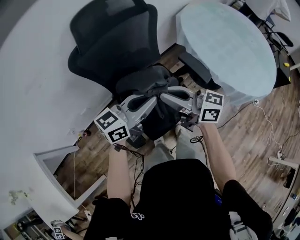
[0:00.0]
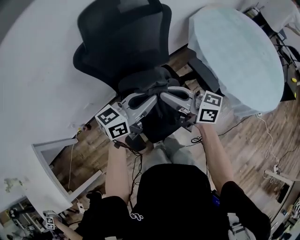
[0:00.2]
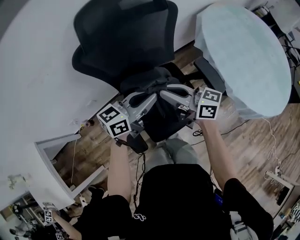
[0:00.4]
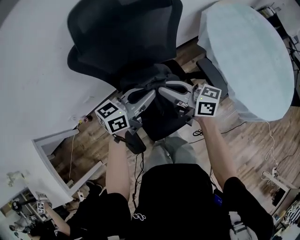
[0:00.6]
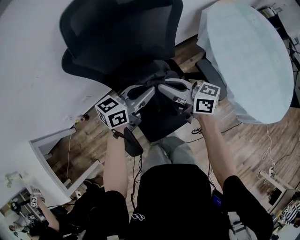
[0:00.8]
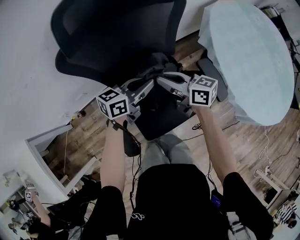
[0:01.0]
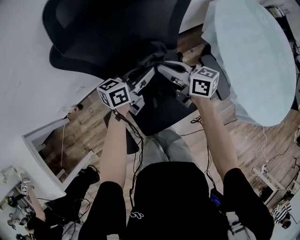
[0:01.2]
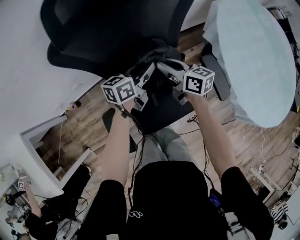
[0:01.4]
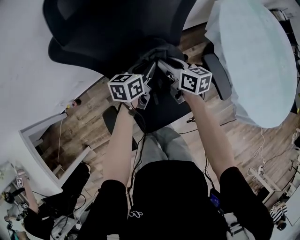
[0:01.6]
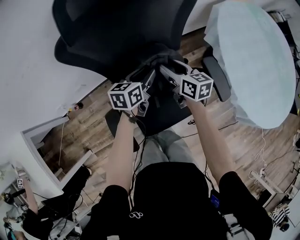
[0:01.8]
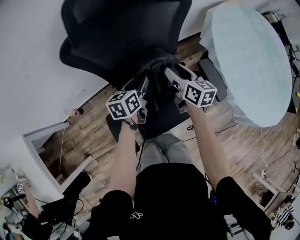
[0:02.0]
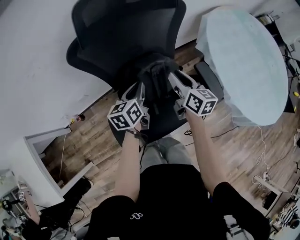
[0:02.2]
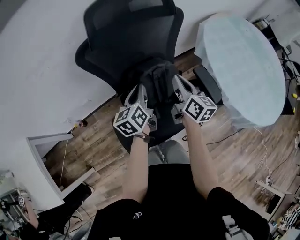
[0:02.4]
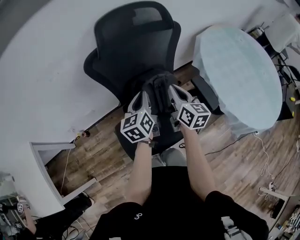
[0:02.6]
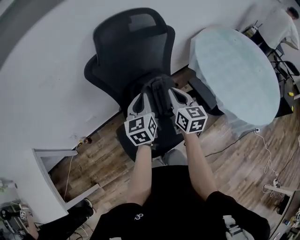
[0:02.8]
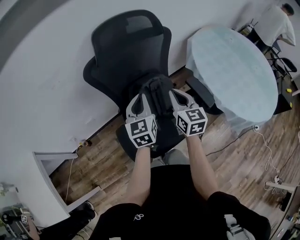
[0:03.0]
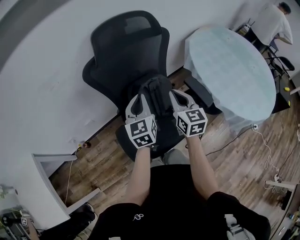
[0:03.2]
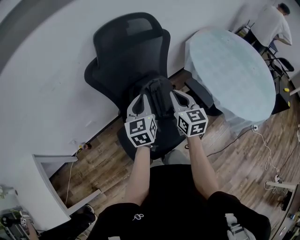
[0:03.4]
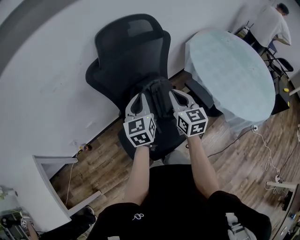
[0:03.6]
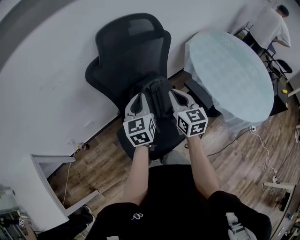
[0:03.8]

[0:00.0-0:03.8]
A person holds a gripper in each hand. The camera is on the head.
0:00.0 to 0:01.2: The grippers both shift forward and downward by about 30 cm. The left gripper changes its angle by approximately 30 degrees.
0:01.2 to 0:02.6: The right gripper shifts approximately 10 cm upward and backward, changes its angle by roughly 40 degrees, and opens, then closes again, while the left gripper goes roughly 15 cm upward, backward and to the left, swivels about 40 degrees, and opens, then closes once more.
0:02.6 to 0:03.8: The grippers both shift upward by roughly 5 cm. The right gripper rotates about 20 degrees.

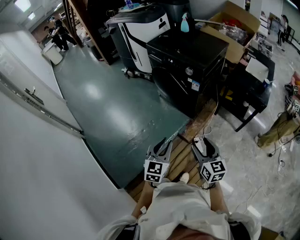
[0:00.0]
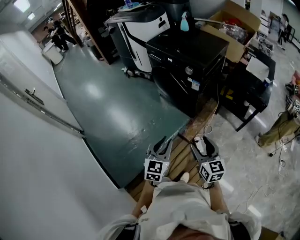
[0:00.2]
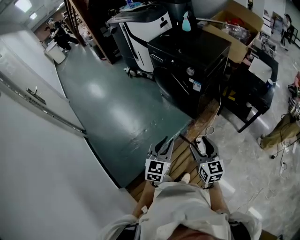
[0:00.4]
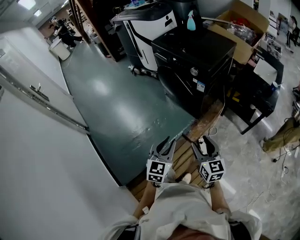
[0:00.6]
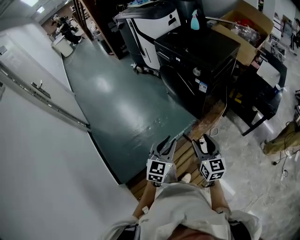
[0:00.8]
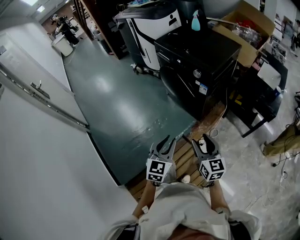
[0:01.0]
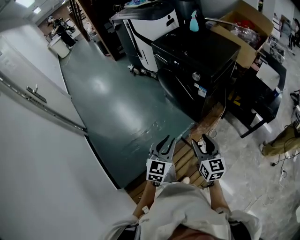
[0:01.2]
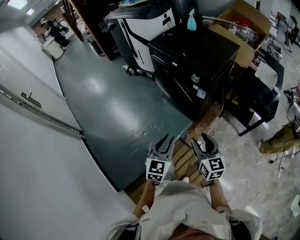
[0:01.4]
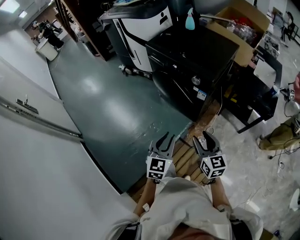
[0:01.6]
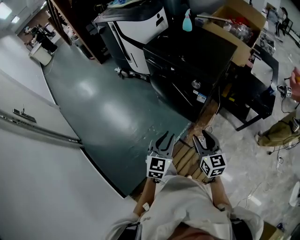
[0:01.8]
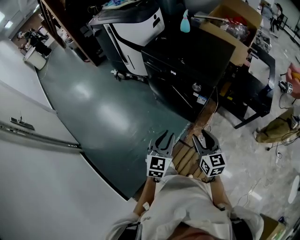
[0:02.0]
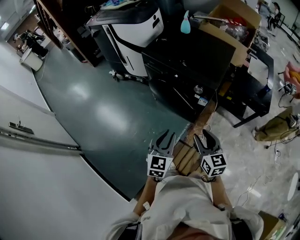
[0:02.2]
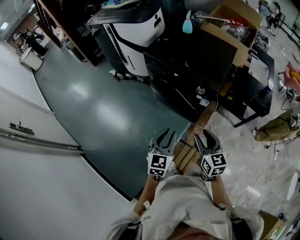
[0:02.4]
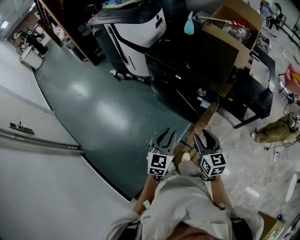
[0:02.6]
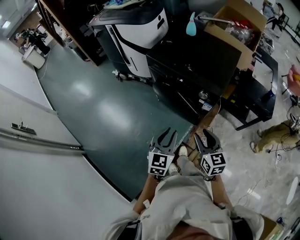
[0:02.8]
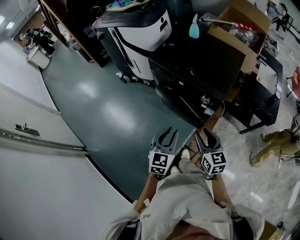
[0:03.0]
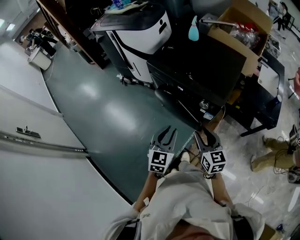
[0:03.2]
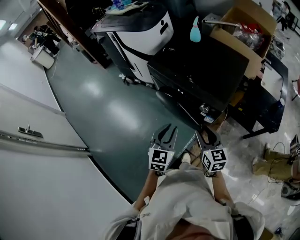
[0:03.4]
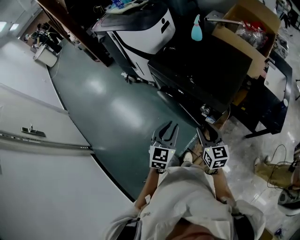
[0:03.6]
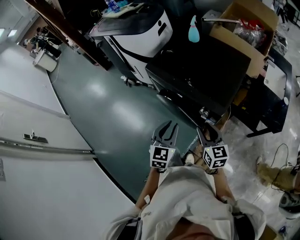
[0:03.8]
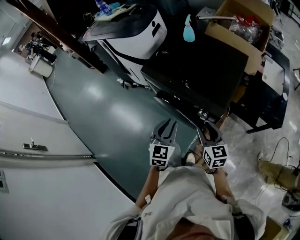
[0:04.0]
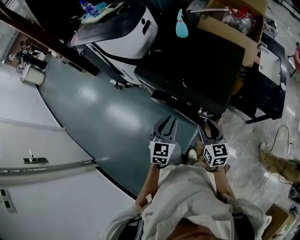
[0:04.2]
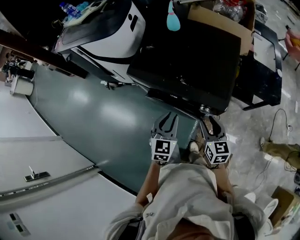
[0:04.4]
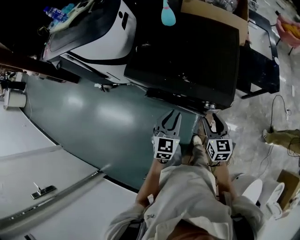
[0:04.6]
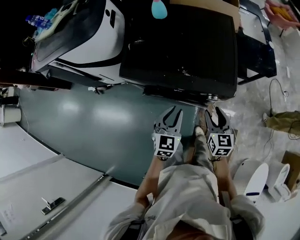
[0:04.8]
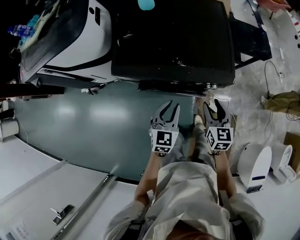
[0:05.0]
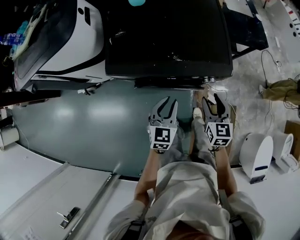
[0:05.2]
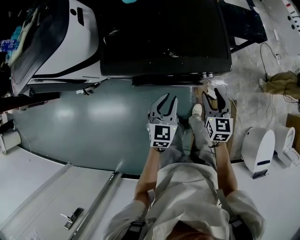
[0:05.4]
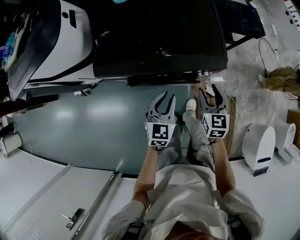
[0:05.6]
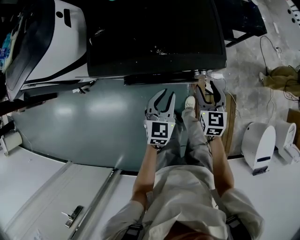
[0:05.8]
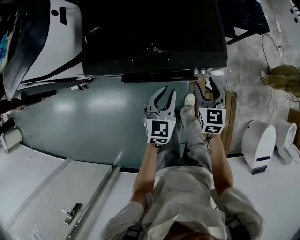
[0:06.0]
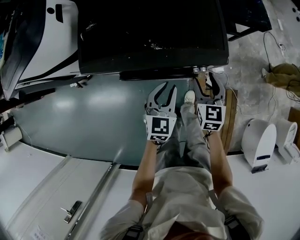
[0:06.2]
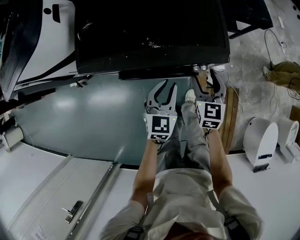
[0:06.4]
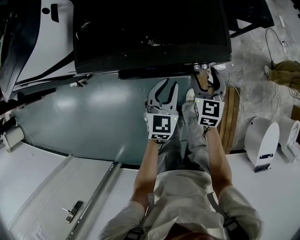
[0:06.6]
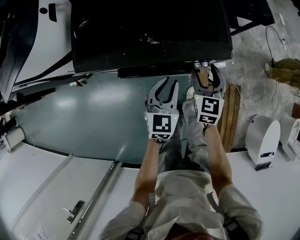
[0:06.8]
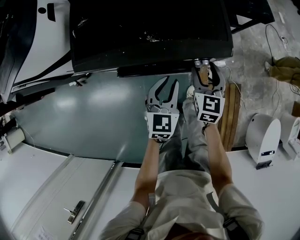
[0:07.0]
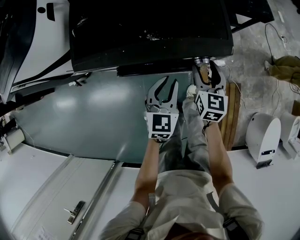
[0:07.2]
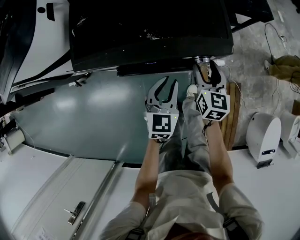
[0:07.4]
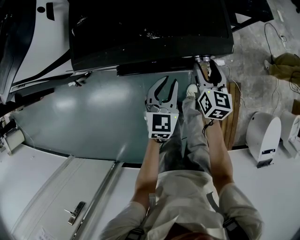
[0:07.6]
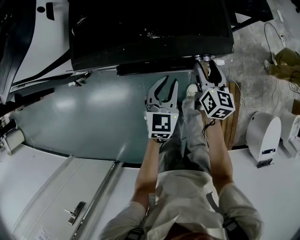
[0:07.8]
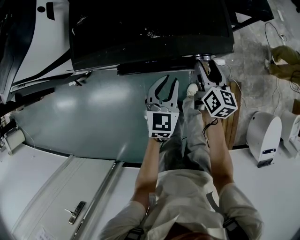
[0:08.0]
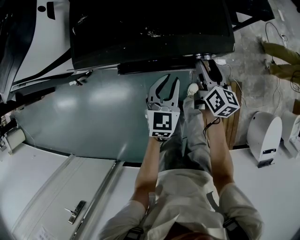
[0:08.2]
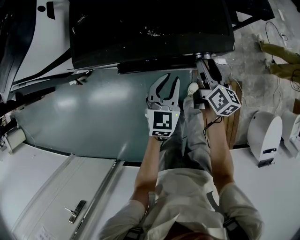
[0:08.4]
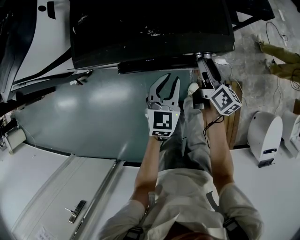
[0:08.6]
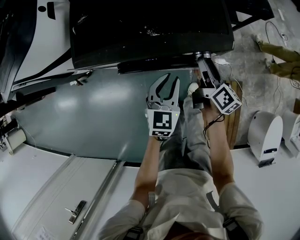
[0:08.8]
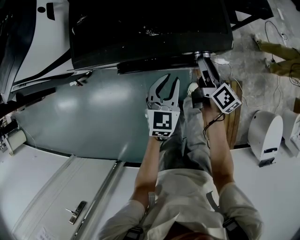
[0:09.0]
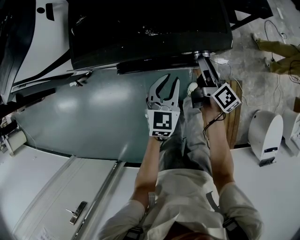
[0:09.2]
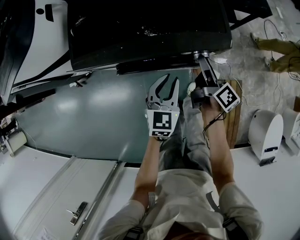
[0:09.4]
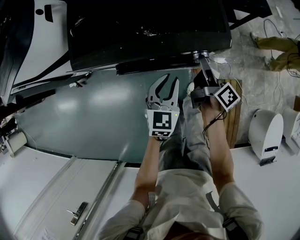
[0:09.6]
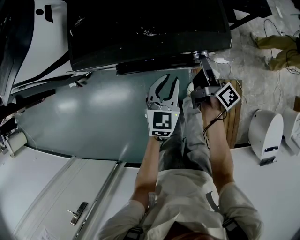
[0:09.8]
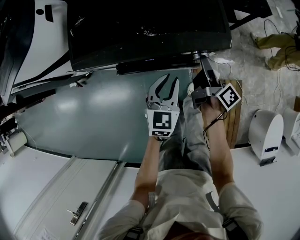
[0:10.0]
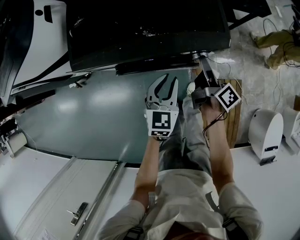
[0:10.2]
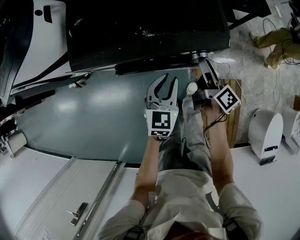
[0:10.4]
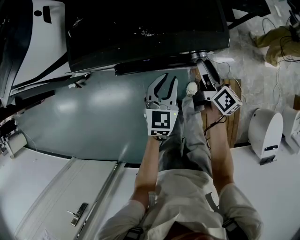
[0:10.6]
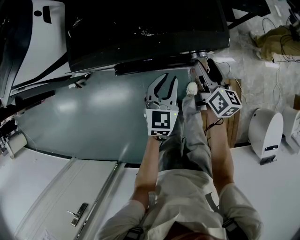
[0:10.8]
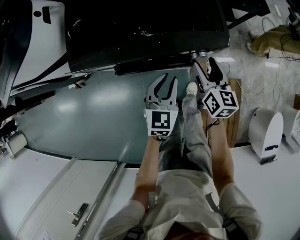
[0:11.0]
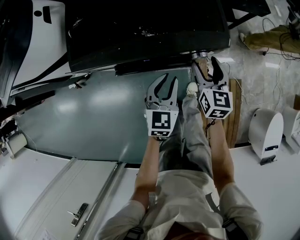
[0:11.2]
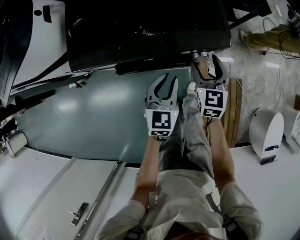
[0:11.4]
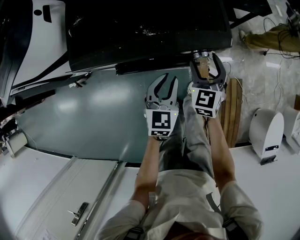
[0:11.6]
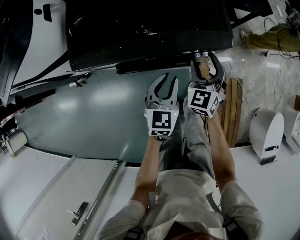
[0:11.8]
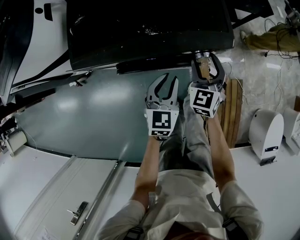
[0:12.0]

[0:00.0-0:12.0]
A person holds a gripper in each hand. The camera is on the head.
0:00.0 to 0:01.6: The grippers both shift forward by approximately 15 cm.
0:01.6 to 0:03.0: The right gripper heads forward and to the left, covering some 15 cm. The left gripper moves forward, about 15 cm.
0:03.0 to 0:04.4: The two grippers go some 20 cm forward.
0:04.4 to 0:06.0: The grippers both shift downward by roughly 10 cm. The right gripper changes its angle by roughly 30 degrees. The left gripper swivels some 30 degrees.
0:06.0 to 0:07.6: The right gripper swivels roughly 20 degrees.
0:07.6 to 0:09.0: The right gripper rolls clockwise, seen from behind, by some 40 degrees.
0:10.4 to 0:12.0: The right gripper twists about 80 degrees counterclockwise, seen from behind.

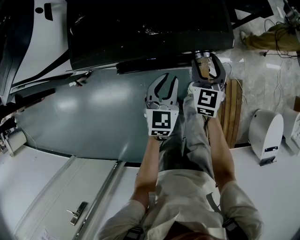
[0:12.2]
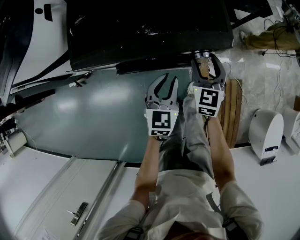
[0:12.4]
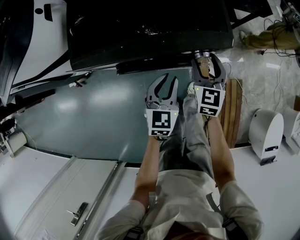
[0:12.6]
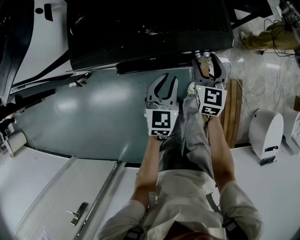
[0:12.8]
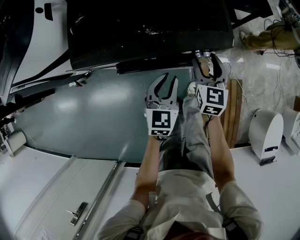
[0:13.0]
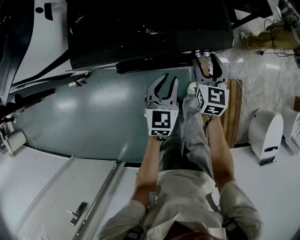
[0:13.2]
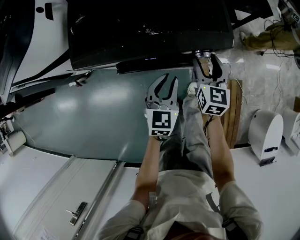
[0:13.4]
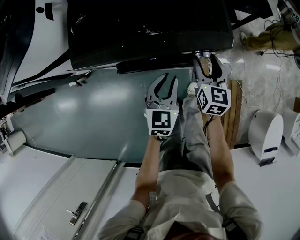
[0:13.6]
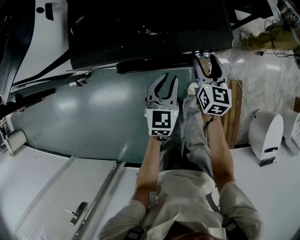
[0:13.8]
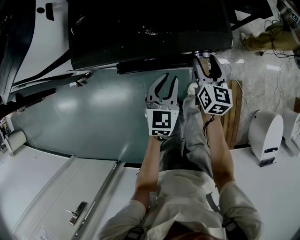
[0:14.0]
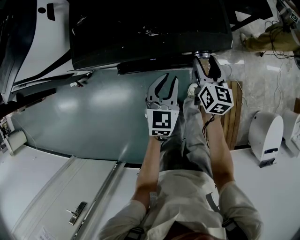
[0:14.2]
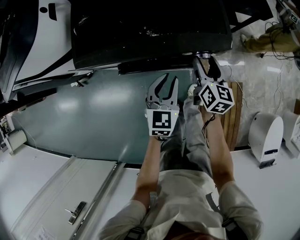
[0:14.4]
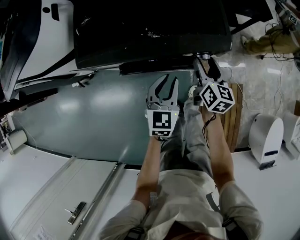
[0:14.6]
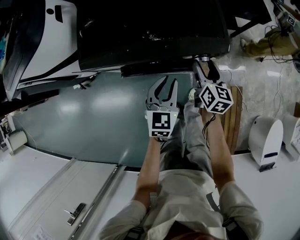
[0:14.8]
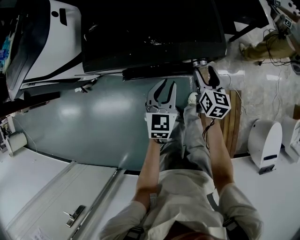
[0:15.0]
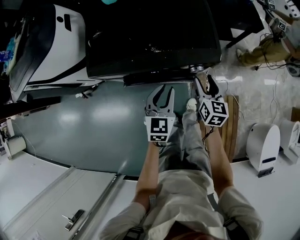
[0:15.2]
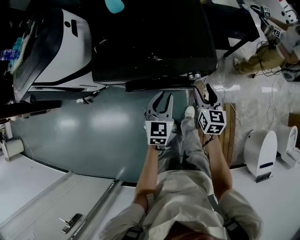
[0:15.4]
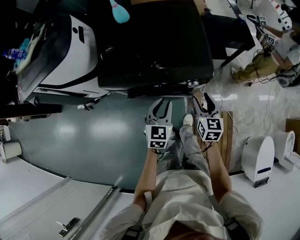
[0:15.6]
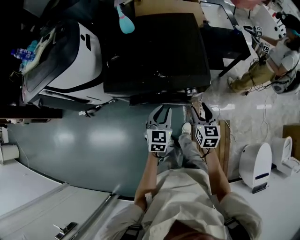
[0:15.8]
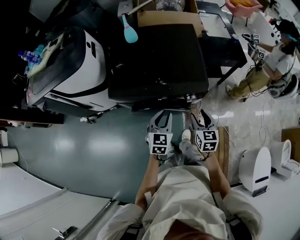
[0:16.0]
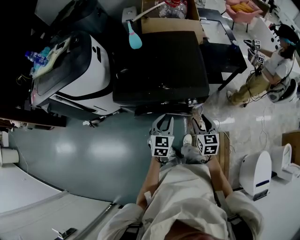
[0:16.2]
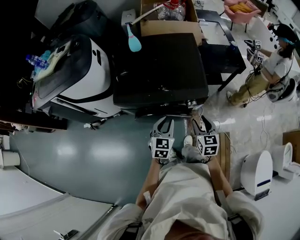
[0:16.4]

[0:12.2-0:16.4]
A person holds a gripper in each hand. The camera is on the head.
0:12.2 to 0:13.6: The right gripper swivels about 20 degrees.
0:13.6 to 0:15.0: The grippers stay close to where they were, moving slightly.
0:15.0 to 0:16.4: The right gripper travels upward and backward by roughly 15 cm, and swivels some 20 degrees. The left gripper is displaced upward by approximately 10 cm.

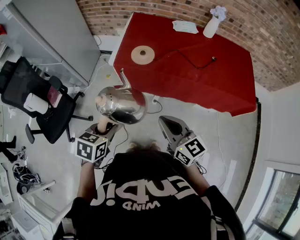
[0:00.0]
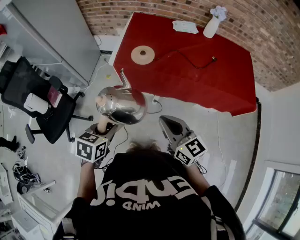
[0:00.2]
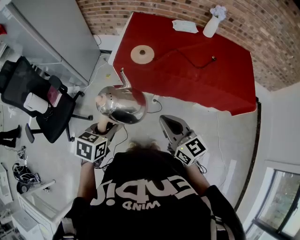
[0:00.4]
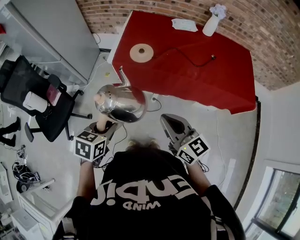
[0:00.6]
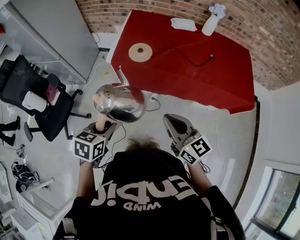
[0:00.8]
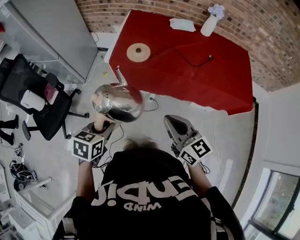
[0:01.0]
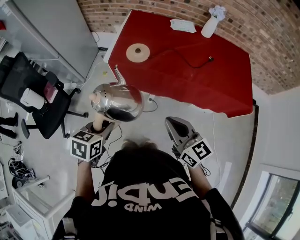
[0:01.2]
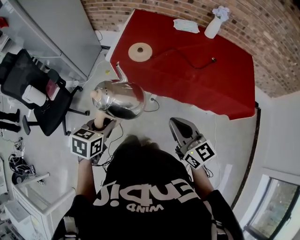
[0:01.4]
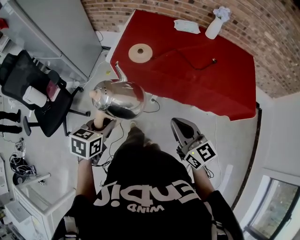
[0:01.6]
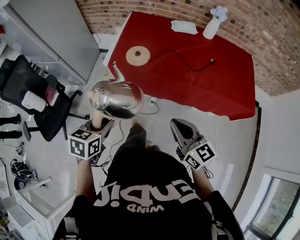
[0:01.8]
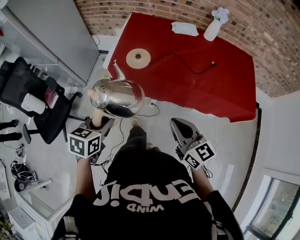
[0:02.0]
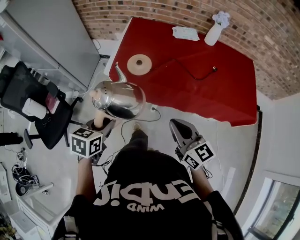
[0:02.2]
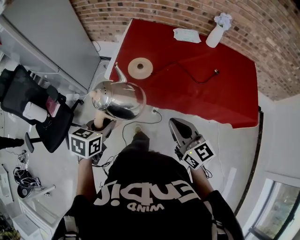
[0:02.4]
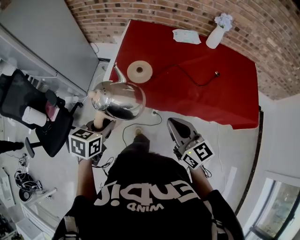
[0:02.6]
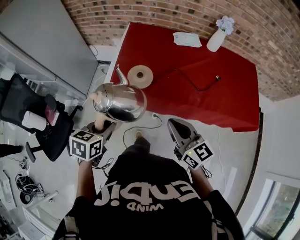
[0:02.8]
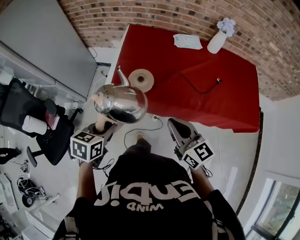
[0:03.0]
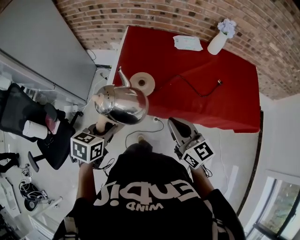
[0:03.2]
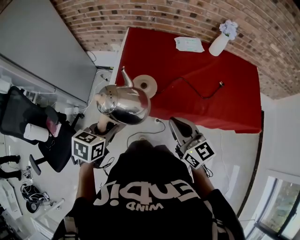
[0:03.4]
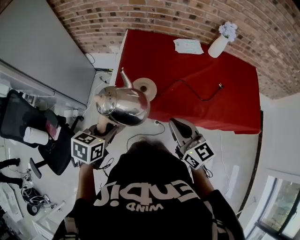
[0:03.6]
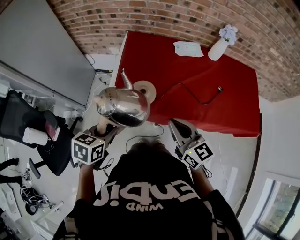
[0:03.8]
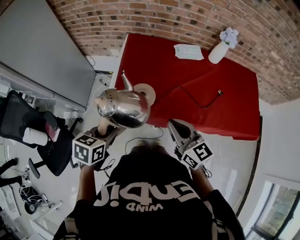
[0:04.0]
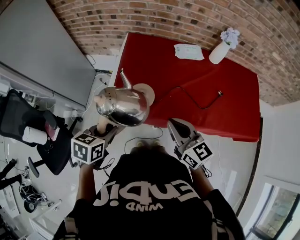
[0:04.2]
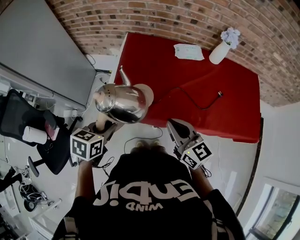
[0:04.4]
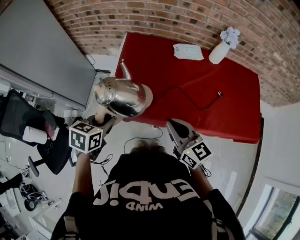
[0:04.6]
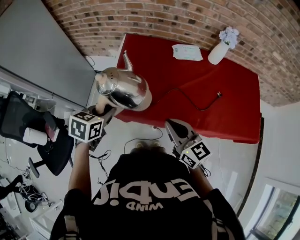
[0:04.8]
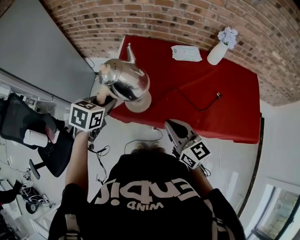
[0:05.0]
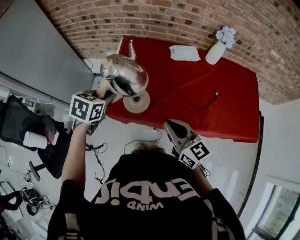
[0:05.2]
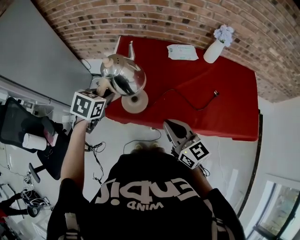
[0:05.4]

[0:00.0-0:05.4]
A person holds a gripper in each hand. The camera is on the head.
0:00.0 to 0:01.4: The right gripper goes roughly 5 cm to the right.
0:01.4 to 0:02.8: Both grippers travel together forward, roughly 20 cm.
0:02.8 to 0:04.0: Both grippers travel together forward, about 10 cm.
0:04.0 to 0:05.4: The left gripper shifts roughly 15 cm forward.
